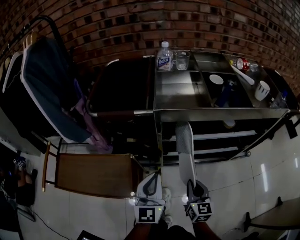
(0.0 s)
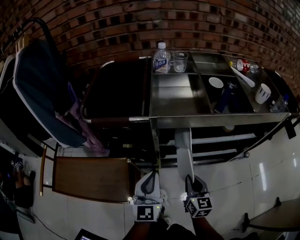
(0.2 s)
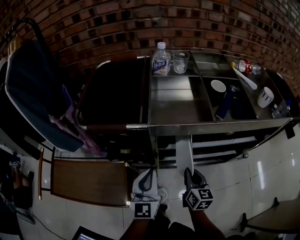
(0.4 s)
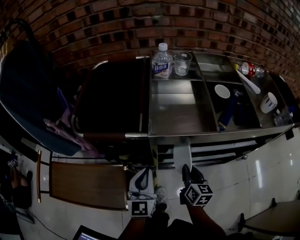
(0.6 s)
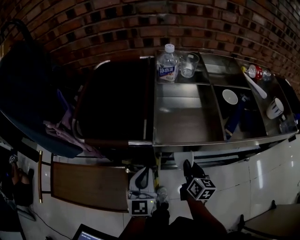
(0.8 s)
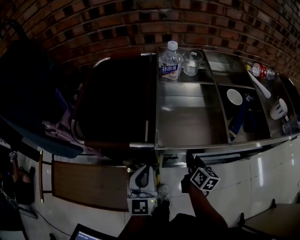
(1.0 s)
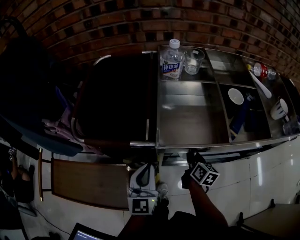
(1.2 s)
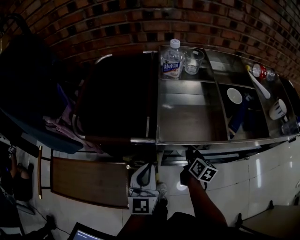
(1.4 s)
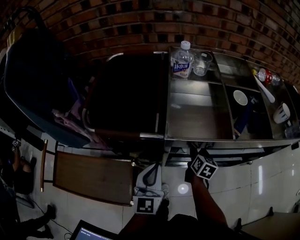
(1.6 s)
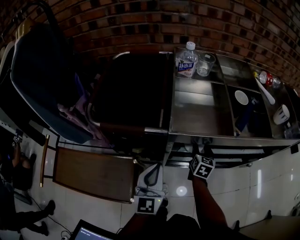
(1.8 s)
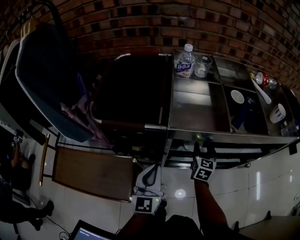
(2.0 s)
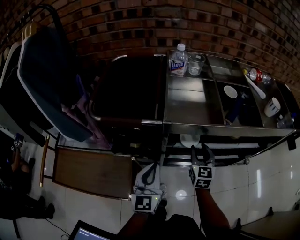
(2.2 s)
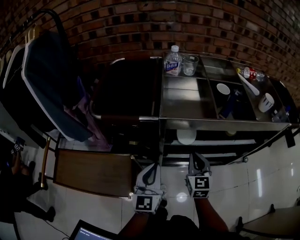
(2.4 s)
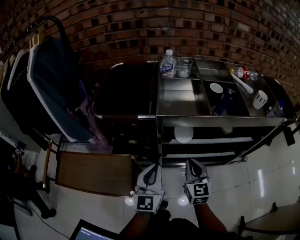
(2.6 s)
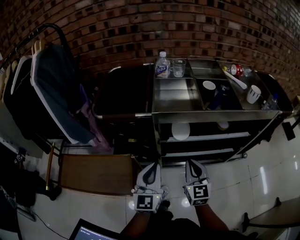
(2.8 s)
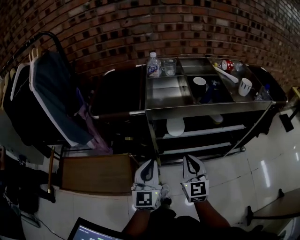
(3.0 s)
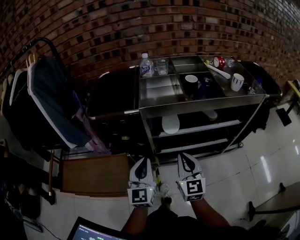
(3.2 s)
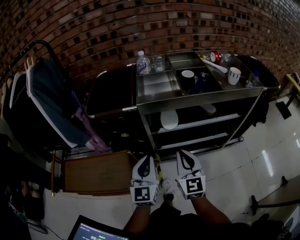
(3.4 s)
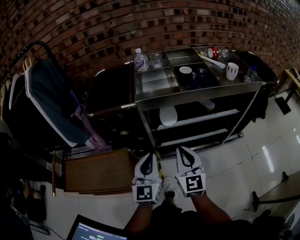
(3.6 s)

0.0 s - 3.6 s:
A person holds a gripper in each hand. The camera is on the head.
0.0 s - 1.8 s: The left gripper is displaced forward by roughly 10 cm. Meanwhile the right gripper goes about 25 cm forward, and opens its fingers.
1.8 s - 3.6 s: The left gripper travels backward, upward and to the right by approximately 15 cm, while the right gripper is displaced backward and upward by about 35 cm, tips its fingers upward by about 30 degrees, and closes.

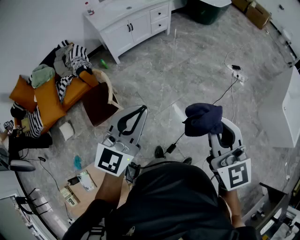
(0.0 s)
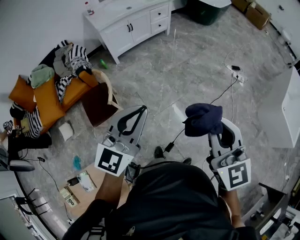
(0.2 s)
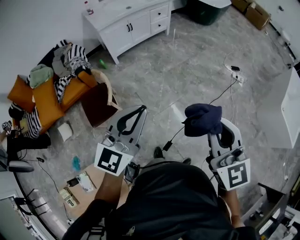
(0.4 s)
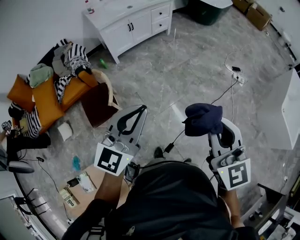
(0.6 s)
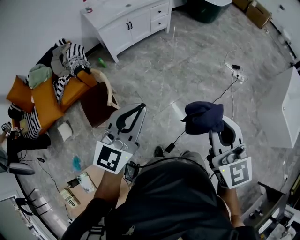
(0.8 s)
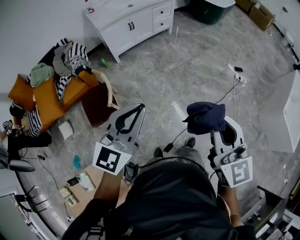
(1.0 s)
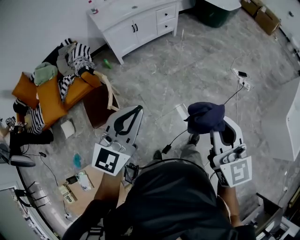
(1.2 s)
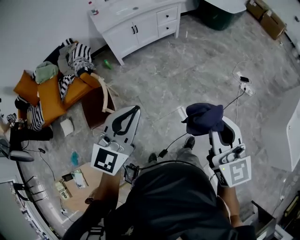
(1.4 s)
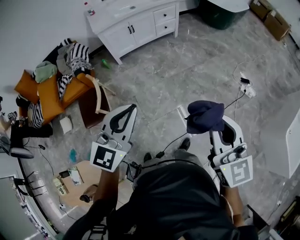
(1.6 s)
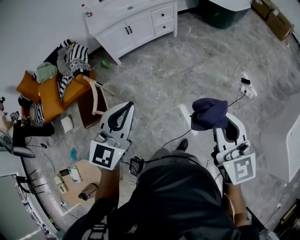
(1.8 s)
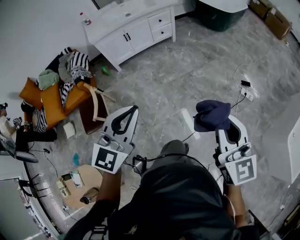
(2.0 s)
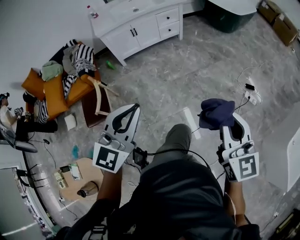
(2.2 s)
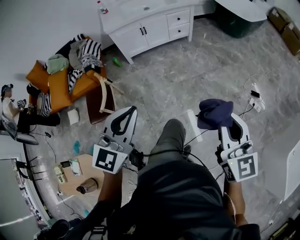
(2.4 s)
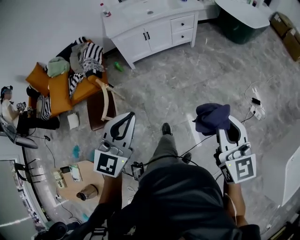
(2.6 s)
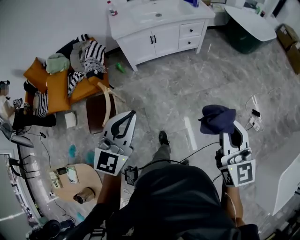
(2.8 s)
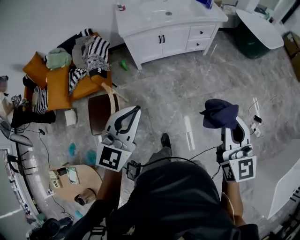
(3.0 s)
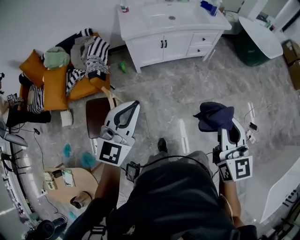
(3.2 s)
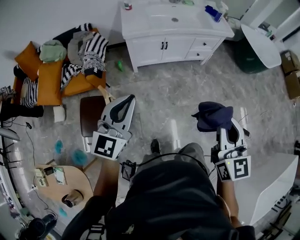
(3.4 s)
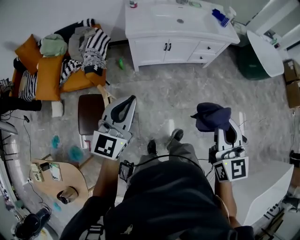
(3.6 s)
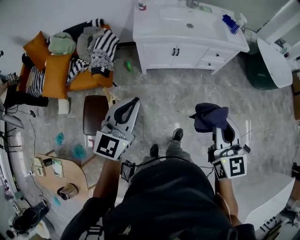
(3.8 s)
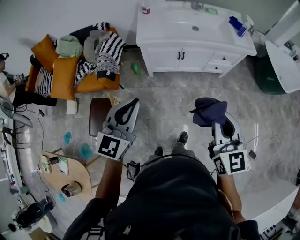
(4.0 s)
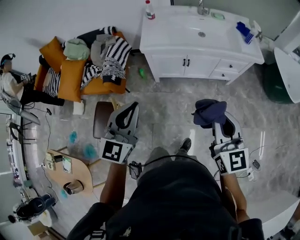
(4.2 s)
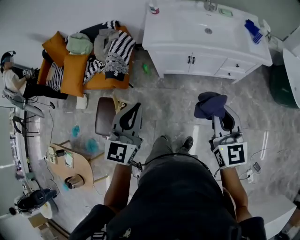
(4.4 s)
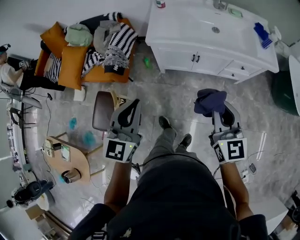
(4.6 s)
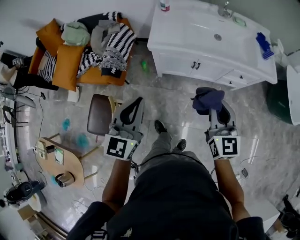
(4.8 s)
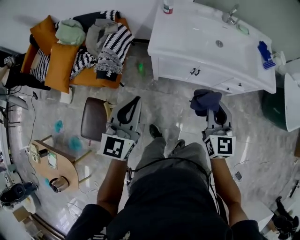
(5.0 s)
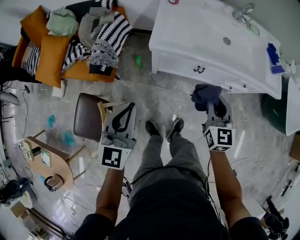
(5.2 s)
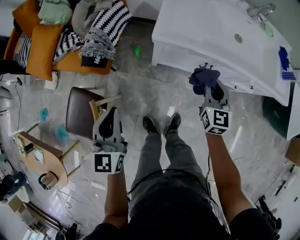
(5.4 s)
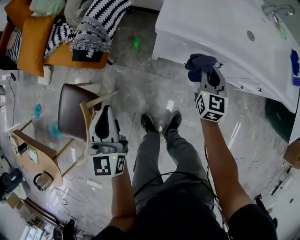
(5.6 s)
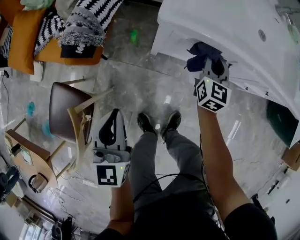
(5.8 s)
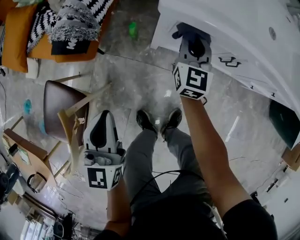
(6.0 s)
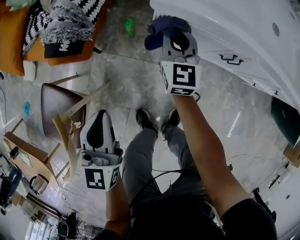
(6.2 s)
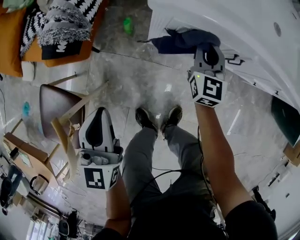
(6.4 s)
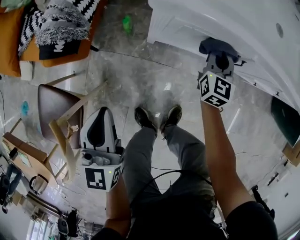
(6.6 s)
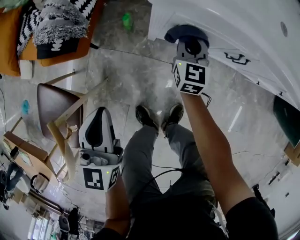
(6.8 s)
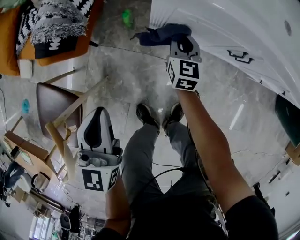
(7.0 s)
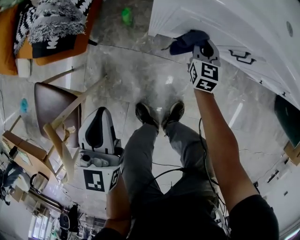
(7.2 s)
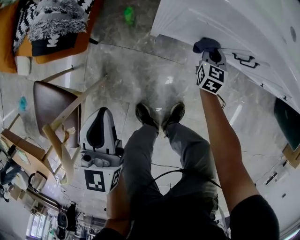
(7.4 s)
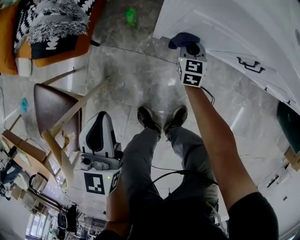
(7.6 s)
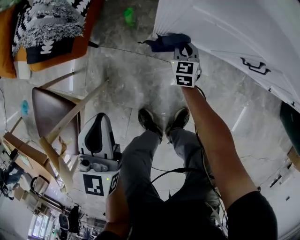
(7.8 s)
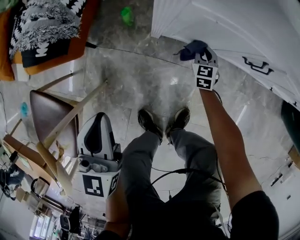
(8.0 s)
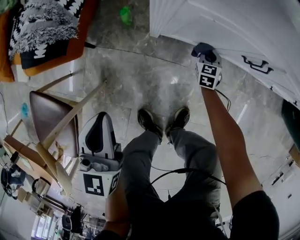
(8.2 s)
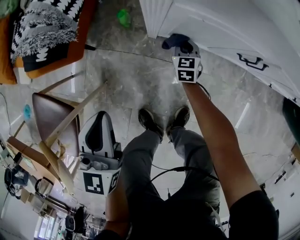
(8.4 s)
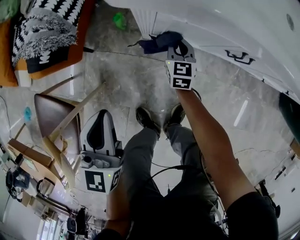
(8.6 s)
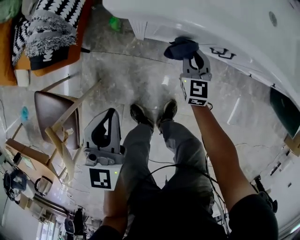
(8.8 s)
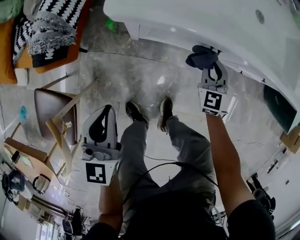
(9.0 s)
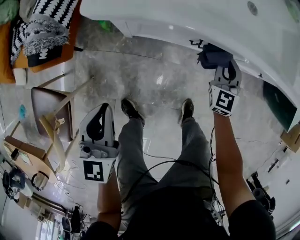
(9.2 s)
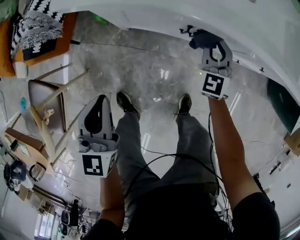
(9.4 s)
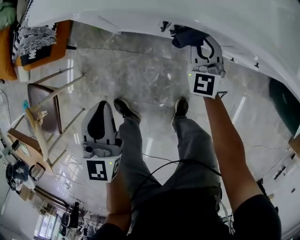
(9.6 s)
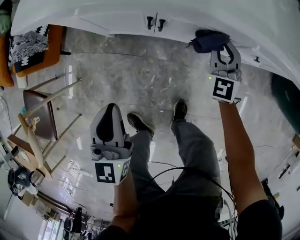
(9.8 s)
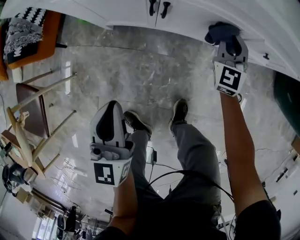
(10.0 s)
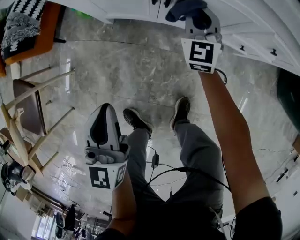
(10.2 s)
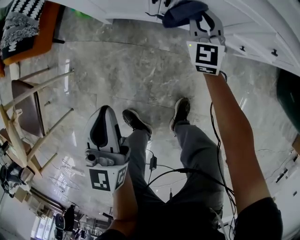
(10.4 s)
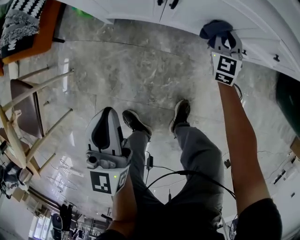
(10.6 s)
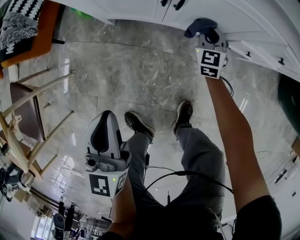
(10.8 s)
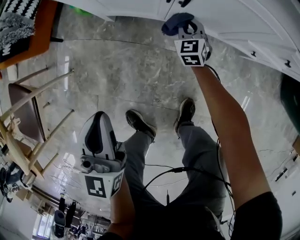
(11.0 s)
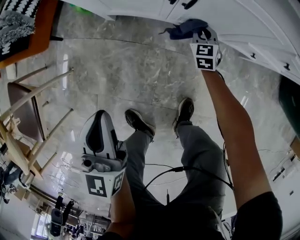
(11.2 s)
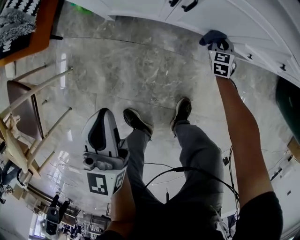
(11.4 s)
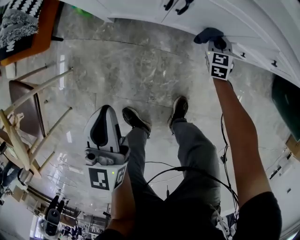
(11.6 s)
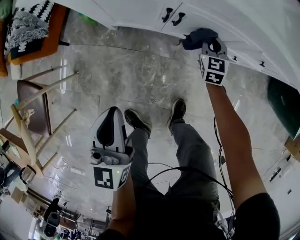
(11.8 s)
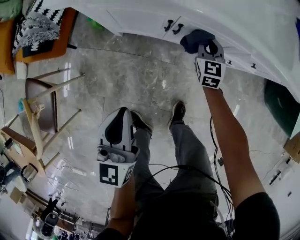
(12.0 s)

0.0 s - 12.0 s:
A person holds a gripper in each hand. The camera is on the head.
0.0 s - 1.6 s: The grippers both shift forward and to the right by approximately 25 cm.
1.6 s - 3.0 s: The left gripper is displaced forward and to the left by about 25 cm; the right gripper heads forward, covering roughly 30 cm.
3.0 s - 4.4 s: Both grippers travel together forward, about 35 cm. The right gripper turns by roughly 20 degrees. Meanwhile the left gripper swivels approximately 30 degrees.
4.4 s - 6.0 s: The two grippers go about 60 cm downward, forward and to the left. The left gripper turns by about 30 degrees.
6.0 s - 7.6 s: The right gripper is displaced downward by some 25 cm, and turns by roughly 20 degrees; the left gripper is displaced downward by approximately 10 cm.
7.6 s - 9.0 s: The right gripper goes about 30 cm upward and to the right, and rotates some 20 degrees. Meanwhile the left gripper is displaced upward and to the right by roughly 15 cm.
9.0 s - 10.4 s: The right gripper is displaced to the right and downward by roughly 15 cm; the left gripper is displaced to the right, backward and downward by roughly 30 cm.
10.4 s - 12.0 s: The right gripper goes downward and returns, approximately 20 cm each way; the left gripper goes about 10 cm upward.

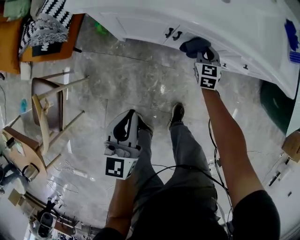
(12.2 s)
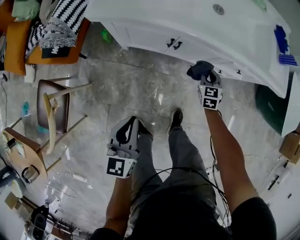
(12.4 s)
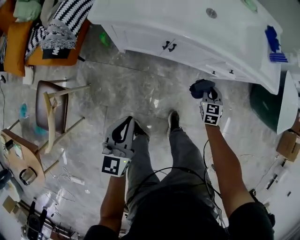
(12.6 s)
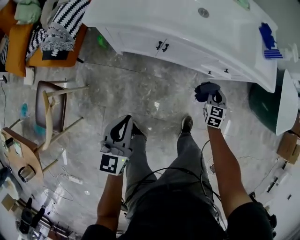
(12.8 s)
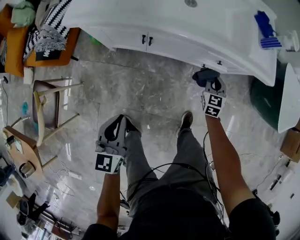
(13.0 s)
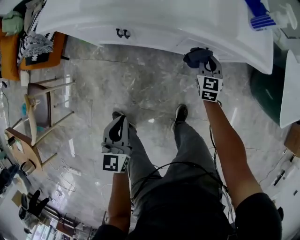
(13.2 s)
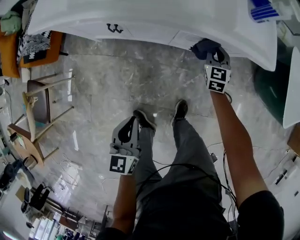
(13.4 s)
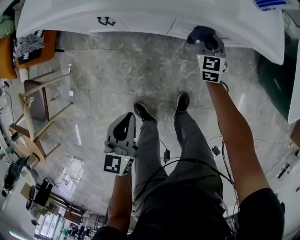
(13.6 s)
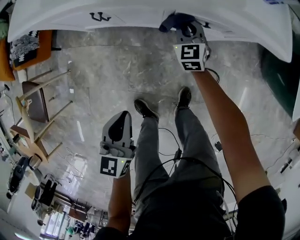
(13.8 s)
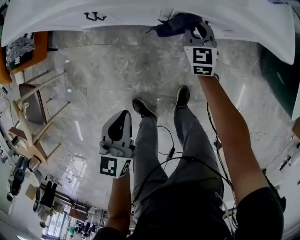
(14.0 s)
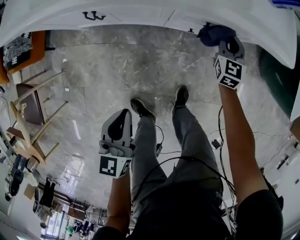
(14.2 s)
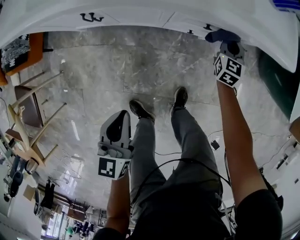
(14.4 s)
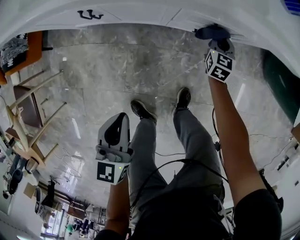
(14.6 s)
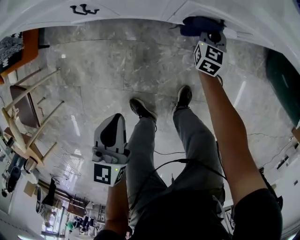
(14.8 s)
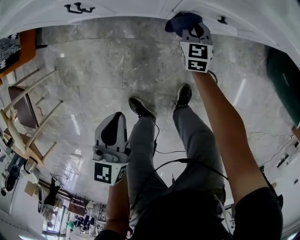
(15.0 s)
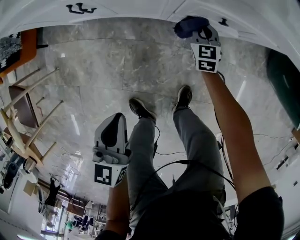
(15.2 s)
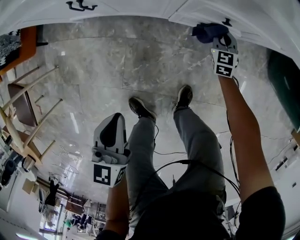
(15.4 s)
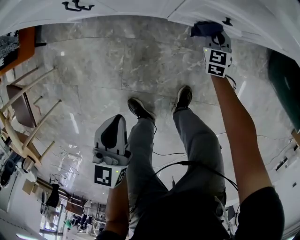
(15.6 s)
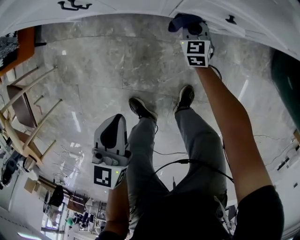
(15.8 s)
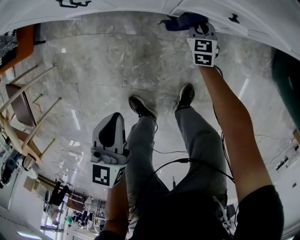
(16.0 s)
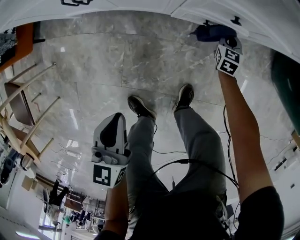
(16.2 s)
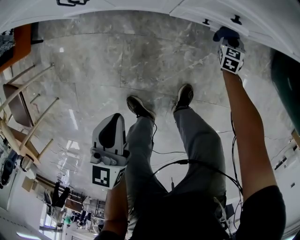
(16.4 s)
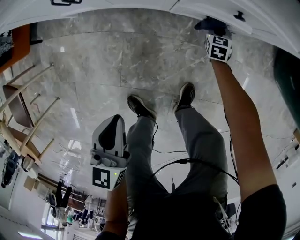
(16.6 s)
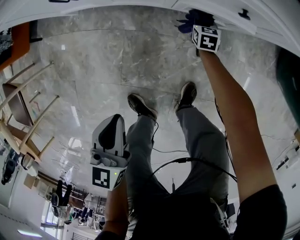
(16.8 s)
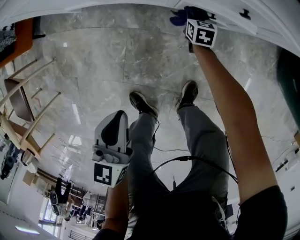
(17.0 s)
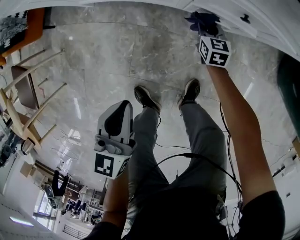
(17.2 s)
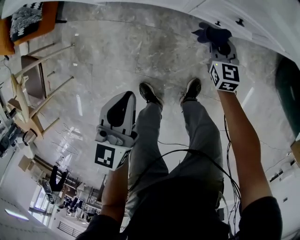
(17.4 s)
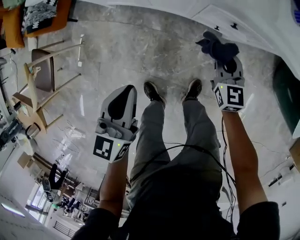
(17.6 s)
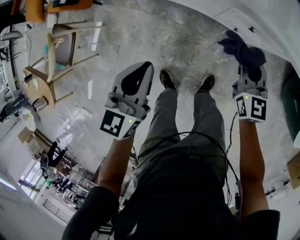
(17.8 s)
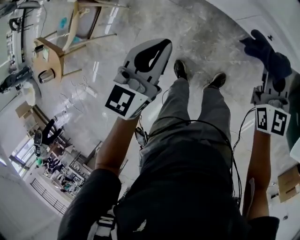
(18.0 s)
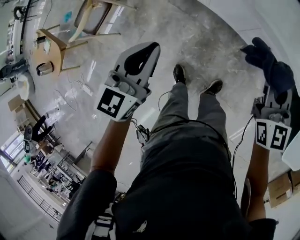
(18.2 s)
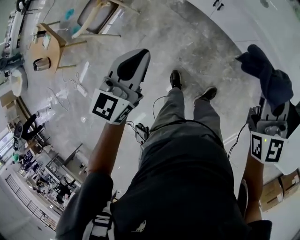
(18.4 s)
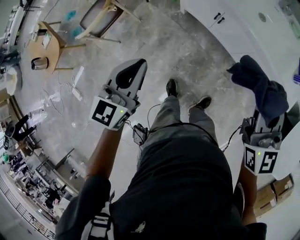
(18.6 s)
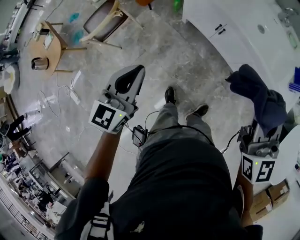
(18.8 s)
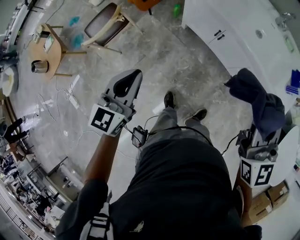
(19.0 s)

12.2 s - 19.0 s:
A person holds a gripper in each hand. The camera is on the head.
12.2 s - 13.6 s: Both grippers travel together to the right, roughly 30 cm.
13.6 s - 15.0 s: The right gripper moves left and right over about 20 cm, changing direction 2 times. Meanwhile the left gripper goes approximately 10 cm downward.
15.0 s - 16.2 s: The right gripper swings left and right, about 15 cm each way, with 2 reversals.
16.2 s - 17.6 s: The right gripper shifts roughly 35 cm upward, to the left and backward, and swivels about 30 degrees, while the left gripper shifts some 15 cm upward.
17.6 s - 19.0 s: The right gripper travels upward and to the left by approximately 50 cm, and turns by approximately 30 degrees, while the left gripper travels to the left and upward by some 35 cm, and turns by roughly 20 degrees.

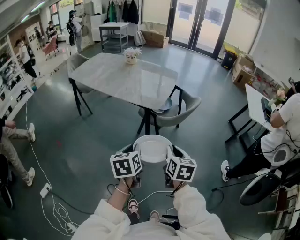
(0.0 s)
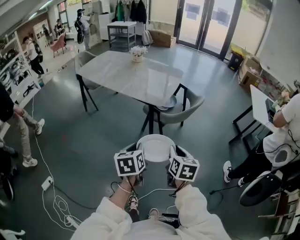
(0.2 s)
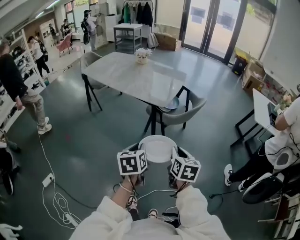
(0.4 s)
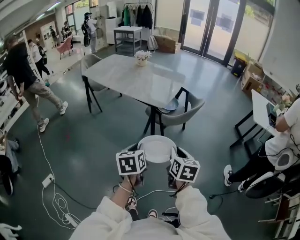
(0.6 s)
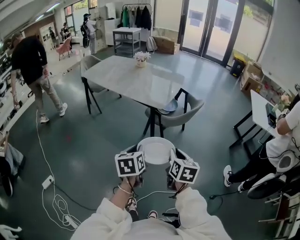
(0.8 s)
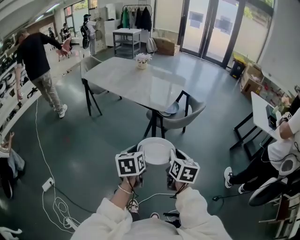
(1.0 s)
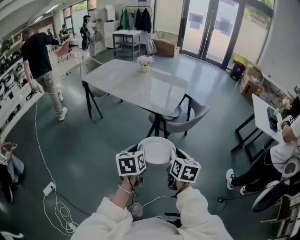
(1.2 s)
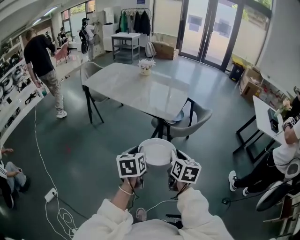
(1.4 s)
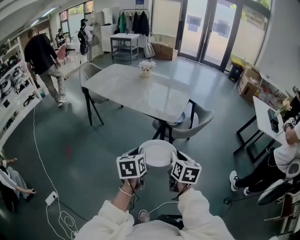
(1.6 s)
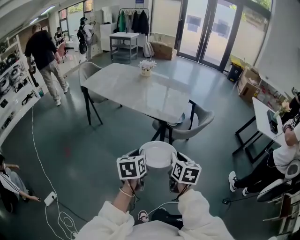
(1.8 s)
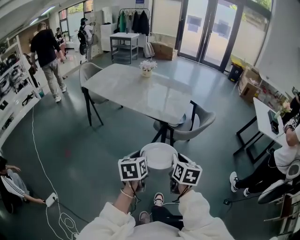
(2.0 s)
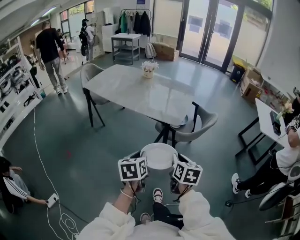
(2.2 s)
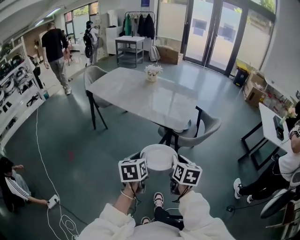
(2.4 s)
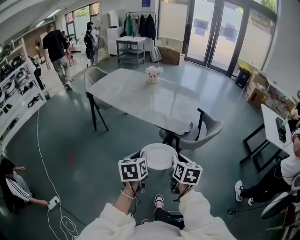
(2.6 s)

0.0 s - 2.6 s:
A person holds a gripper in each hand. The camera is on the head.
1.2 s - 2.6 s: The grippers both shift forward and to the left by roughly 15 cm.
